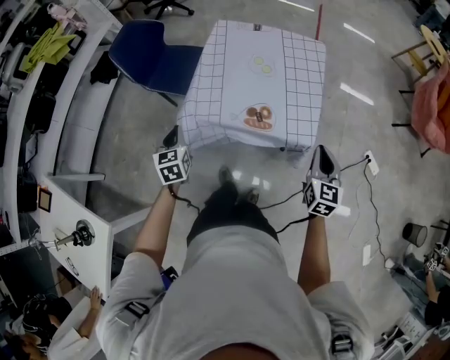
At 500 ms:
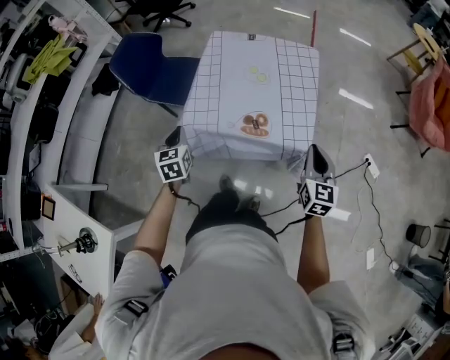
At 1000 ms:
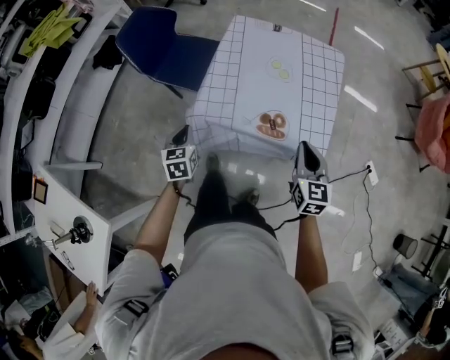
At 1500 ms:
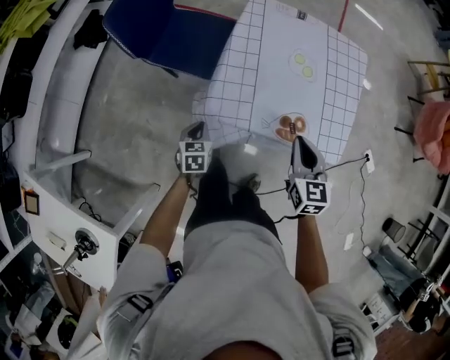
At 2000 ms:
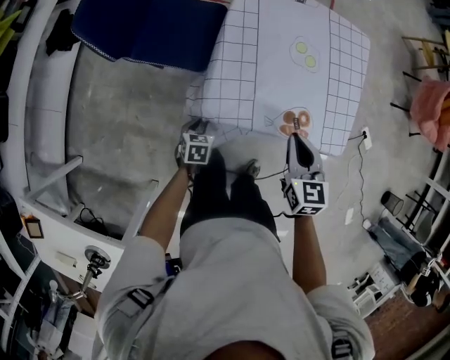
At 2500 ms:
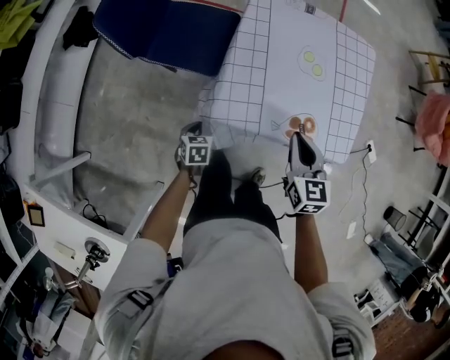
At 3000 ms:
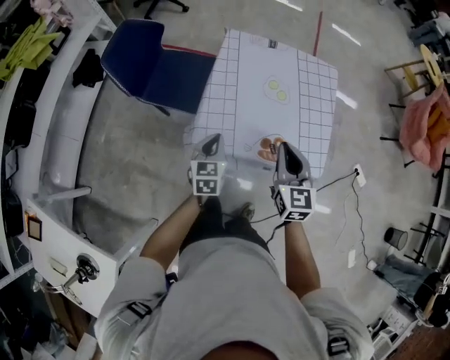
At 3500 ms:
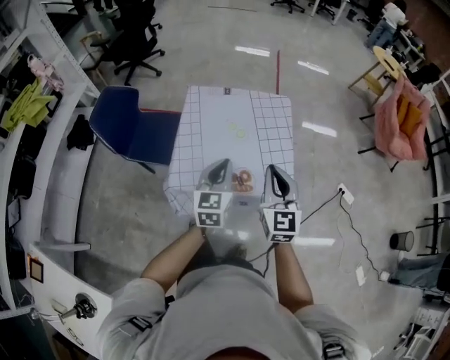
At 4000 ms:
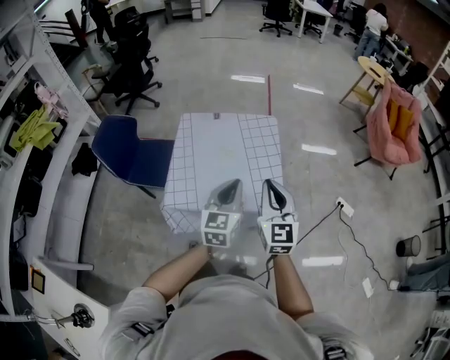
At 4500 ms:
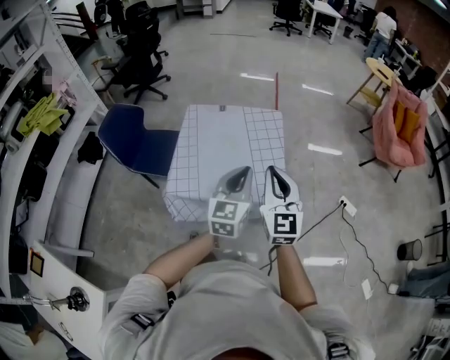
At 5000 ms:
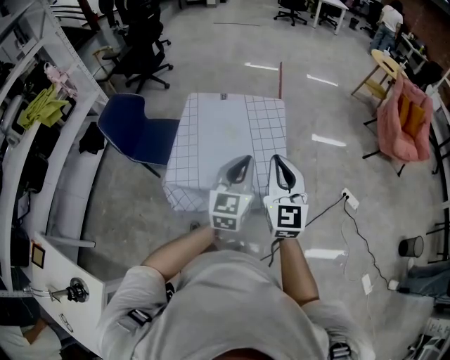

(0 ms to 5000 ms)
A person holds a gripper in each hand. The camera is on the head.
0 ms - 2500 ms: The left gripper goes roughly 25 cm downward and to the left, rotates about 30 degrees, and opens, then closes once more. The right gripper moves to the left and forward, about 35 cm.
2500 ms - 5000 ms: The right gripper goes about 35 cm upward and to the right, and angles its fingers upward, by about 30 degrees. Meanwhile the left gripper shifts approximately 60 cm upward and to the right, and points its fingers about 60 degrees further upward.

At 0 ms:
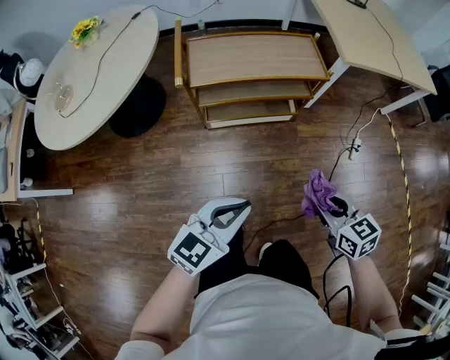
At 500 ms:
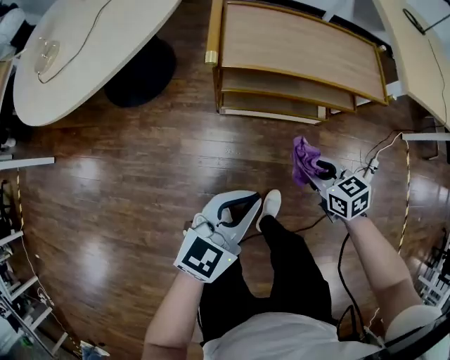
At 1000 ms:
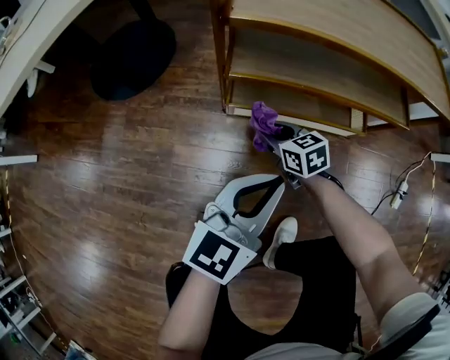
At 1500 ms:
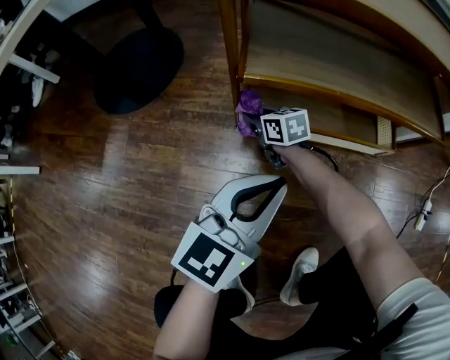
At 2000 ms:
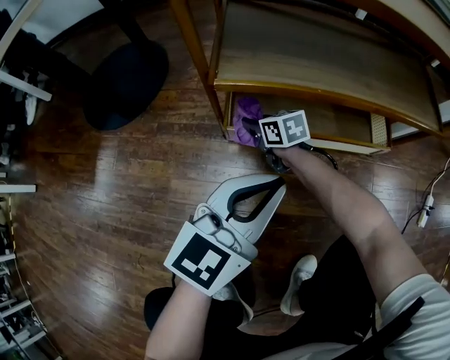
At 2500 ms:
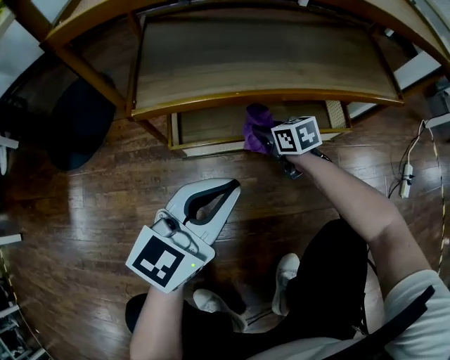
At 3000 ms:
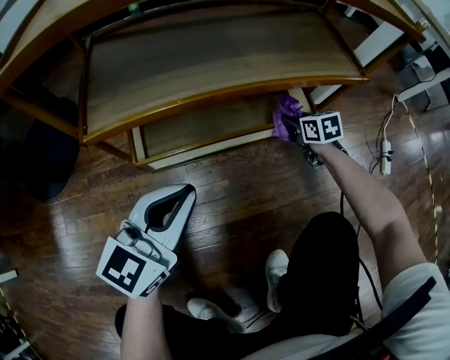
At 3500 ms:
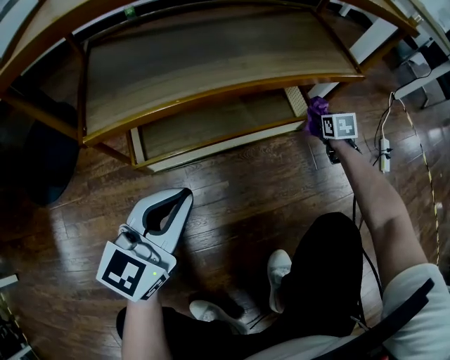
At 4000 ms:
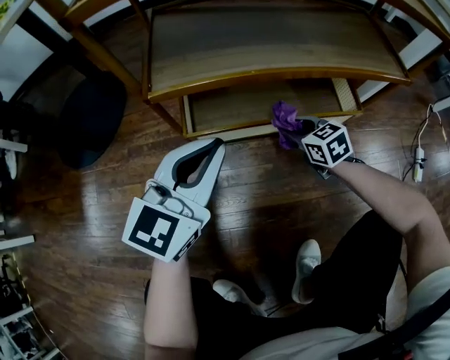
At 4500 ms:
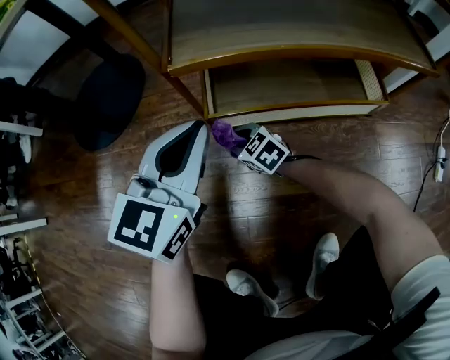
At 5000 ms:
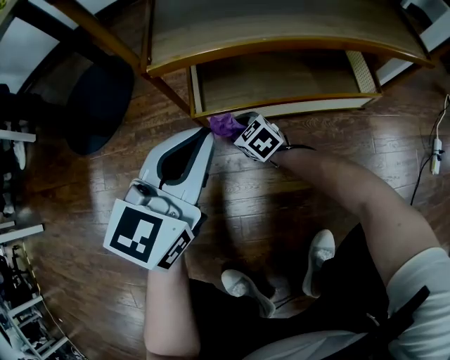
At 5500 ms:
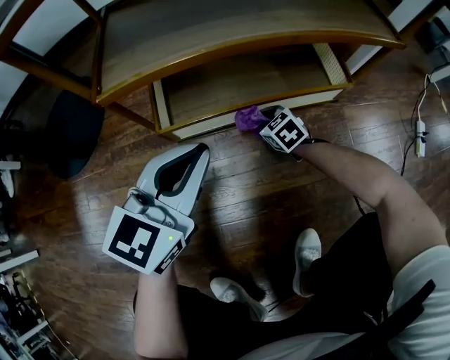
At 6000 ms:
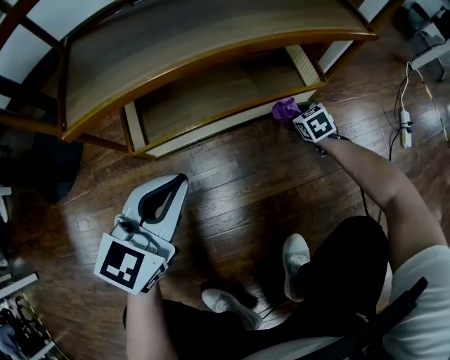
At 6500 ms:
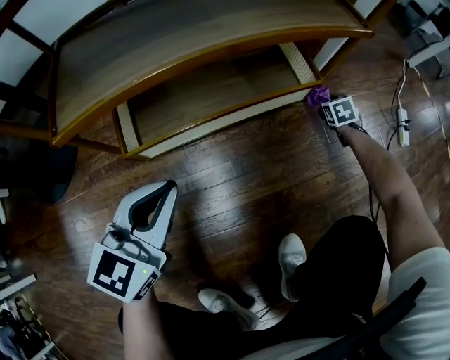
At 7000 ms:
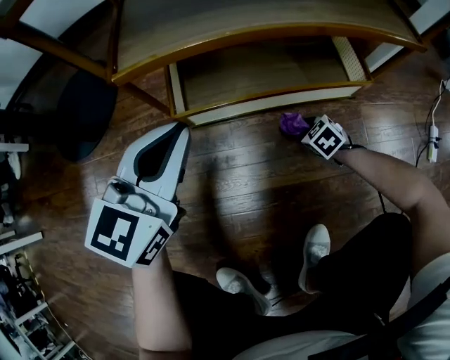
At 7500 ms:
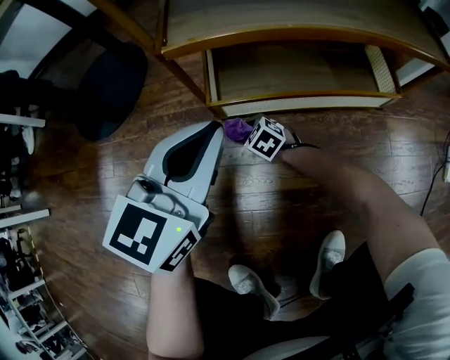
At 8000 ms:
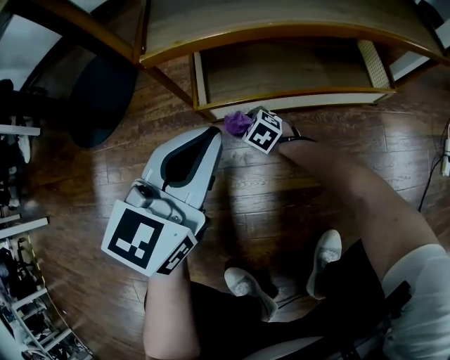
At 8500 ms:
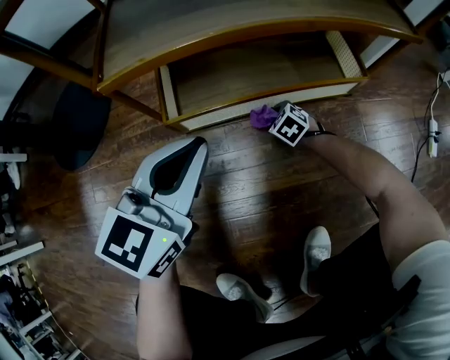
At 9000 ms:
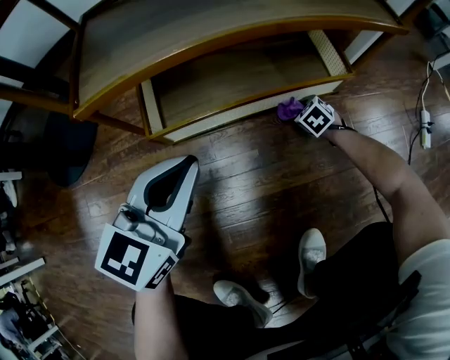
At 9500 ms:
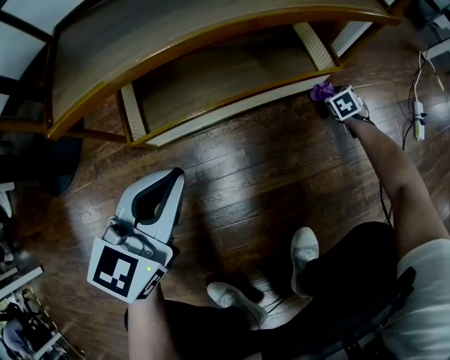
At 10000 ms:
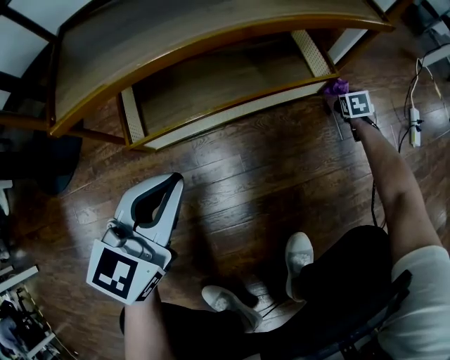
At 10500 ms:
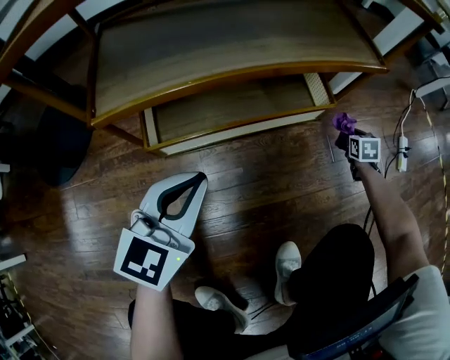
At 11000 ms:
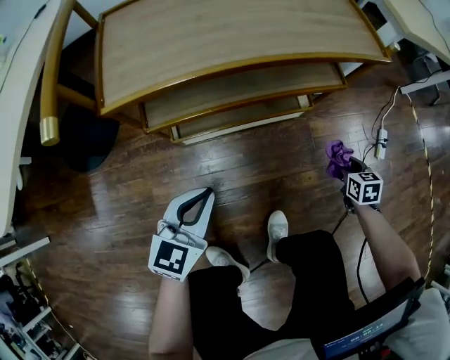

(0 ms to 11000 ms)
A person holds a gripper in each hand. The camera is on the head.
0 ms - 2000 ms: The left gripper heads downward and forward, covering about 50 cm, while the right gripper moves downward, forward and to the left, approximately 90 cm, and changes its angle by approximately 20 degrees.
2000 ms - 3500 ms: The right gripper ends up roughly 60 cm from where it was, and rotates roughly 50 degrees. Meanwhile the left gripper changes place by roughly 5 cm.
3500 ms - 5500 ms: The right gripper turns by approximately 40 degrees.
5500 ms - 7500 ms: The right gripper swivels roughly 20 degrees, while the left gripper changes place by roughly 5 cm.
7500 ms - 9000 ms: The right gripper changes place by approximately 35 cm, and turns by approximately 30 degrees; the left gripper shifts by approximately 10 cm.
9000 ms - 11000 ms: The left gripper moves upward and backward, approximately 15 cm; the right gripper is displaced upward and to the right by about 40 cm, and swivels roughly 40 degrees.

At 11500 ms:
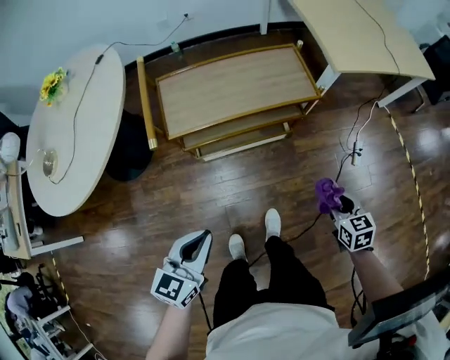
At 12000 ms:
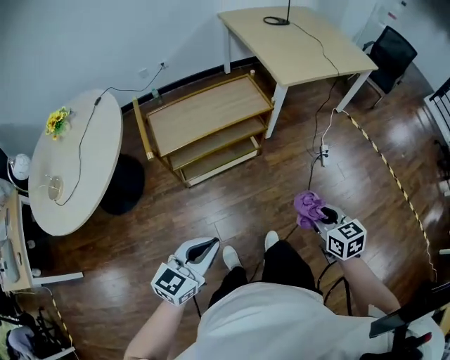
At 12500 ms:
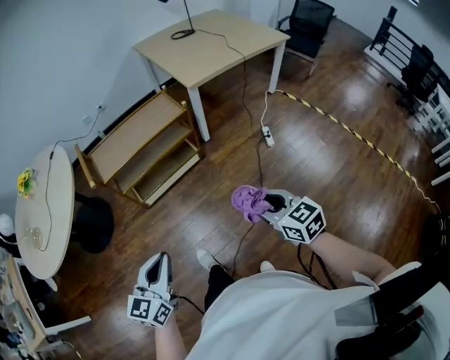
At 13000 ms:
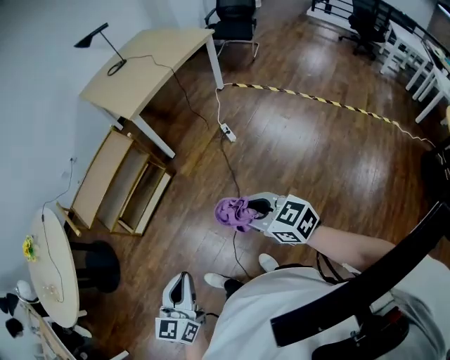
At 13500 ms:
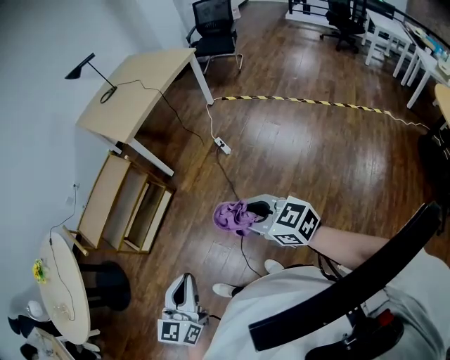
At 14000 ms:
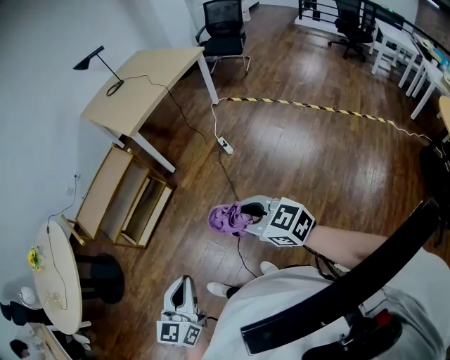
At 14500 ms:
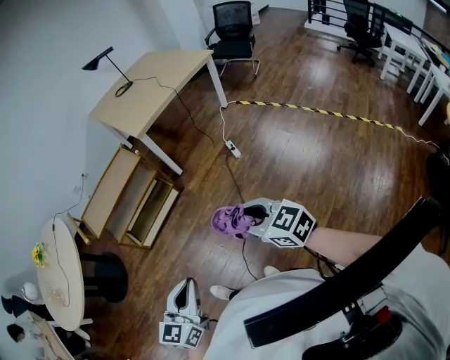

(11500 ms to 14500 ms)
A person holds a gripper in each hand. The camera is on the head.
11500 ms - 13000 ms: The right gripper moves backward, upward and to the right, some 50 cm, and turns by roughly 30 degrees; the left gripper goes about 40 cm to the right, backward and upward, and changes its angle by approximately 20 degrees.
13000 ms - 14500 ms: The left gripper shifts by about 5 cm.

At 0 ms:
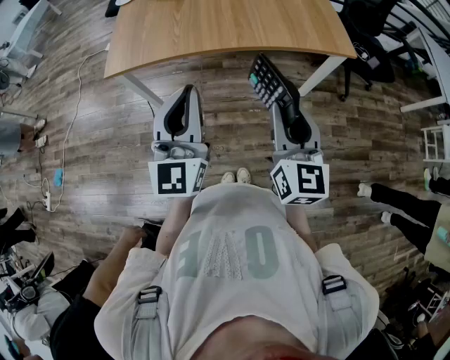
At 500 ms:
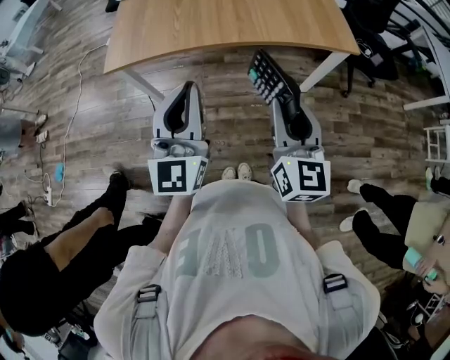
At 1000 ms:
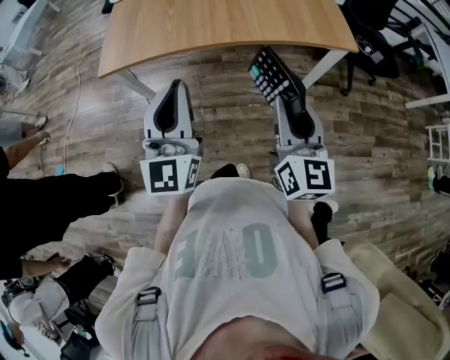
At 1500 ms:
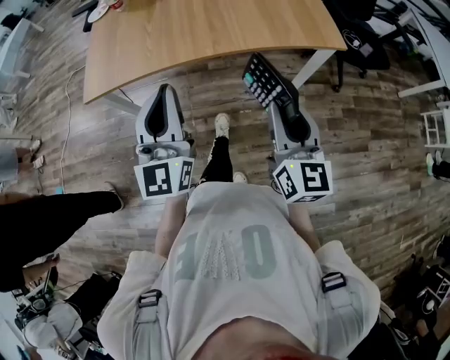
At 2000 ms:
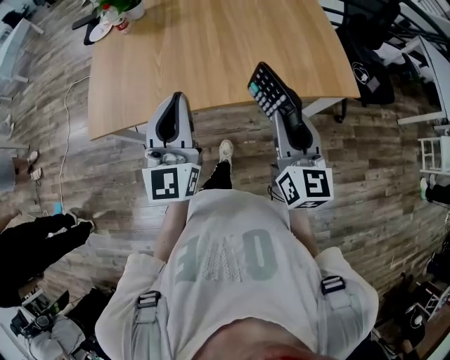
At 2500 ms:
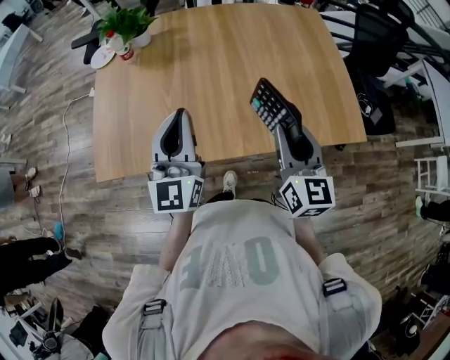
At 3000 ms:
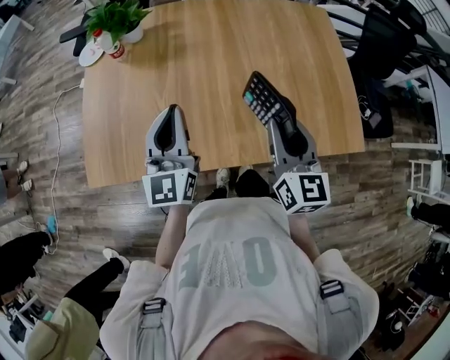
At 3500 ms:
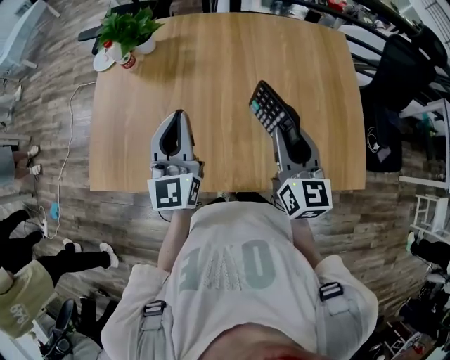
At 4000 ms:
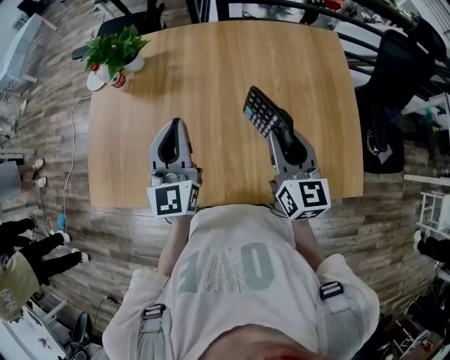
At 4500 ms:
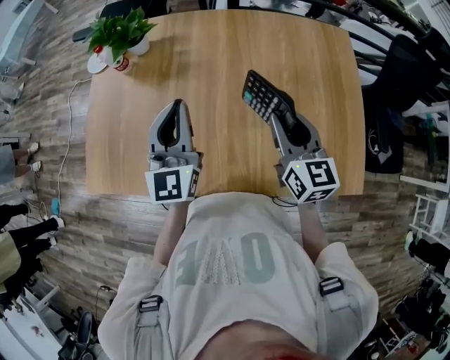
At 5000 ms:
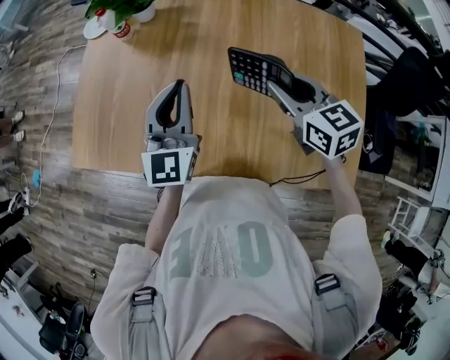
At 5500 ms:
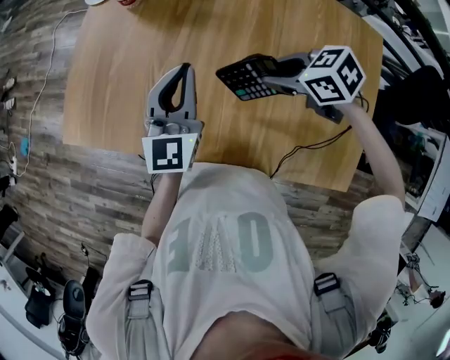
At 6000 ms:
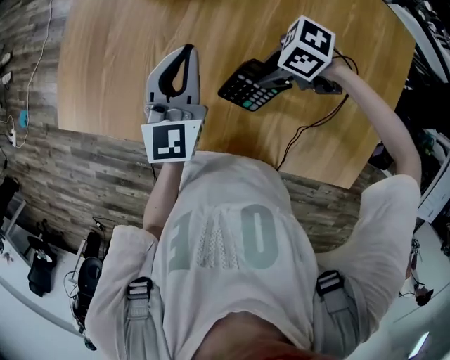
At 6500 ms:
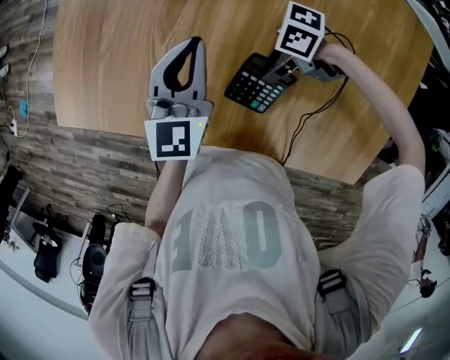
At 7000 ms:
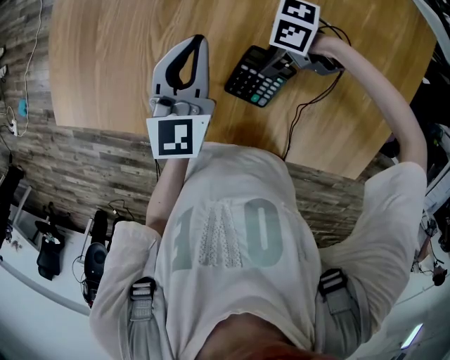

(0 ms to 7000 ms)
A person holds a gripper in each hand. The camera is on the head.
0 ms - 2000 ms: The grippers both shift forward by some 25 cm.
2000 ms - 3500 ms: Both grippers travel together forward, roughly 30 cm.
3500 ms - 5000 ms: The left gripper shifts some 5 cm forward; the right gripper travels forward by approximately 10 cm, and swivels approximately 40 degrees.
5000 ms - 7000 ms: The left gripper heads downward, covering some 10 cm; the right gripper shifts some 25 cm downward, and swivels roughly 100 degrees.
